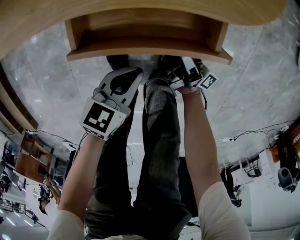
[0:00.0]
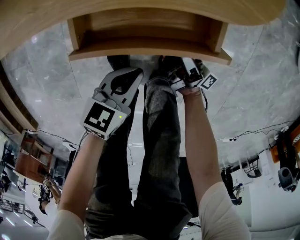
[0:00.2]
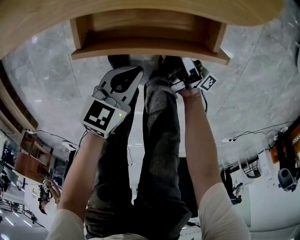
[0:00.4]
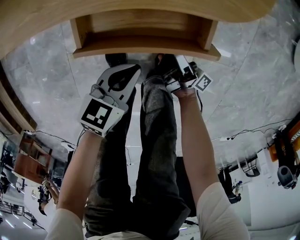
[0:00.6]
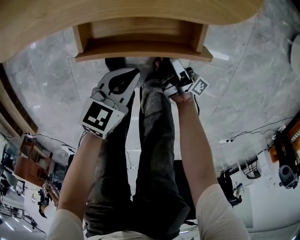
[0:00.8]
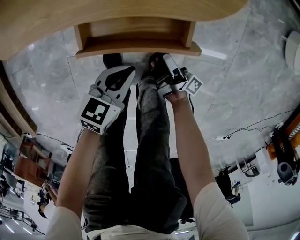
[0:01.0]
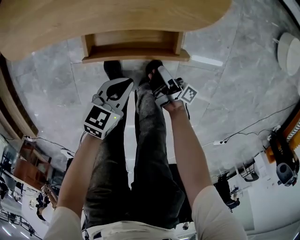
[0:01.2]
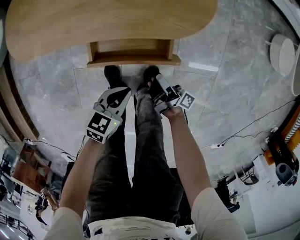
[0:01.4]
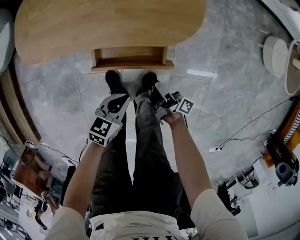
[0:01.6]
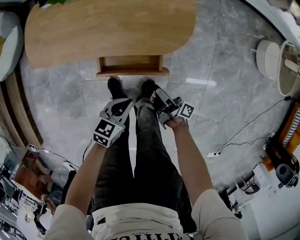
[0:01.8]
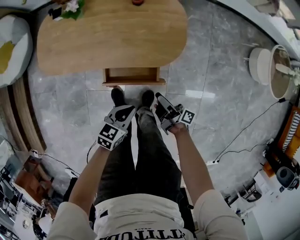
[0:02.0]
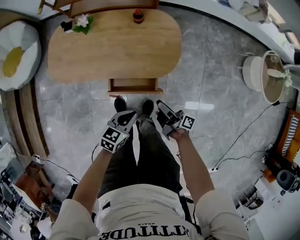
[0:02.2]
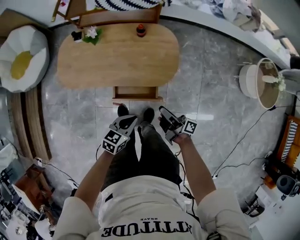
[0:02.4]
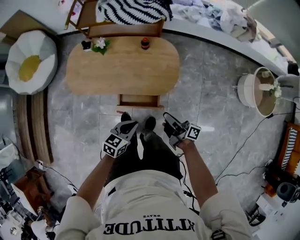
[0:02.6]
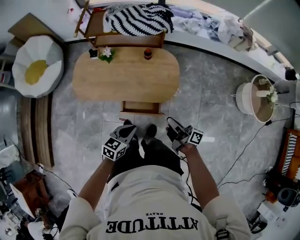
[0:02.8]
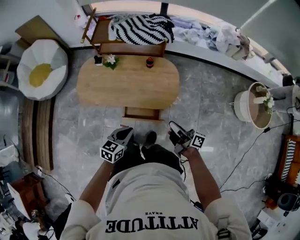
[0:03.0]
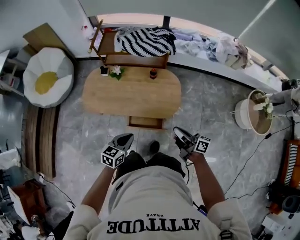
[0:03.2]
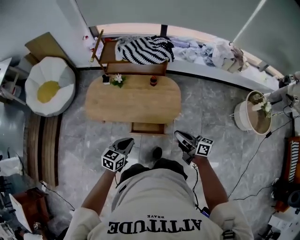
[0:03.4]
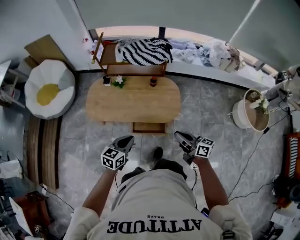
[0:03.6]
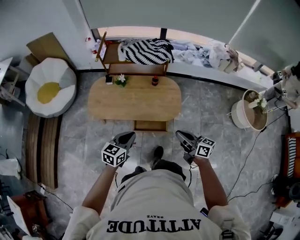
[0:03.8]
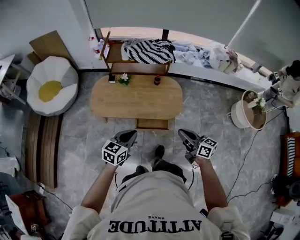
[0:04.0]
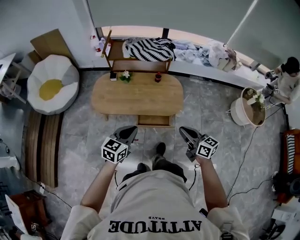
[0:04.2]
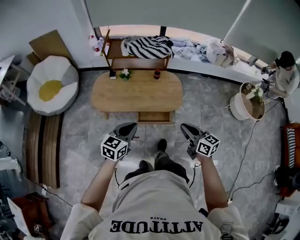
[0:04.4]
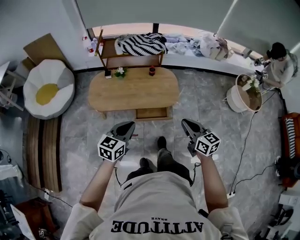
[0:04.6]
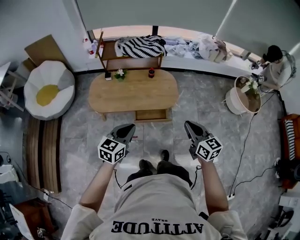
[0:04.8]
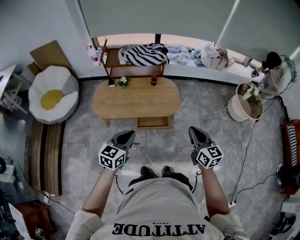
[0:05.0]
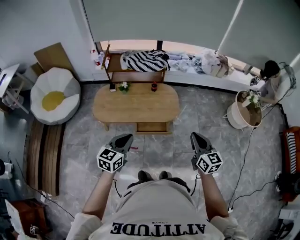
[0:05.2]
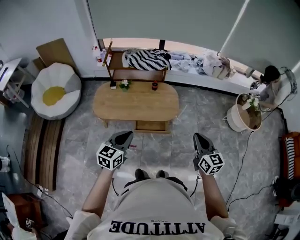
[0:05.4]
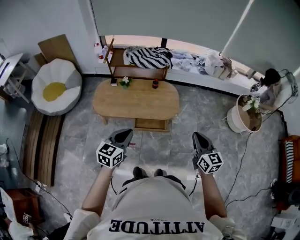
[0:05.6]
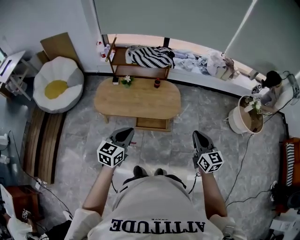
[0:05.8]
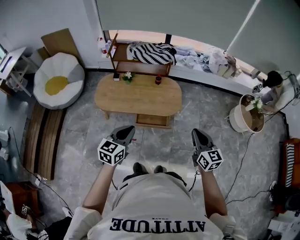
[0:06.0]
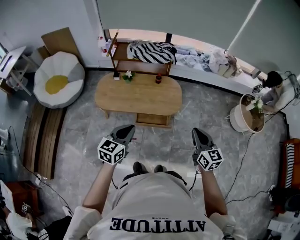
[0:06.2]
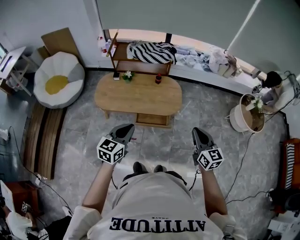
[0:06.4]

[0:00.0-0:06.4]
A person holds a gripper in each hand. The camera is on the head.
0:00.0 to 0:01.6: The grippers both shift upward by approximately 20 cm.
0:01.6 to 0:03.2: The two grippers go approximately 40 cm upward. The right gripper rotates roughly 40 degrees, and closes its fingers.
0:03.2 to 0:04.8: The right gripper is displaced backward and upward by approximately 25 cm, and twists approximately 50 degrees counterclockwise, seen from behind; the left gripper heads upward, backward and to the left, covering about 20 cm.
0:04.8 to 0:06.4: The right gripper travels to the right by roughly 10 cm.

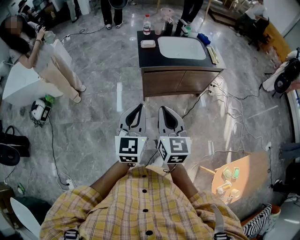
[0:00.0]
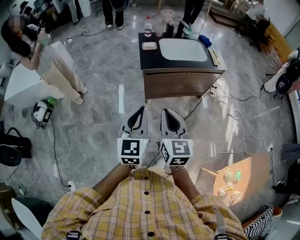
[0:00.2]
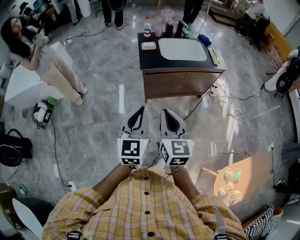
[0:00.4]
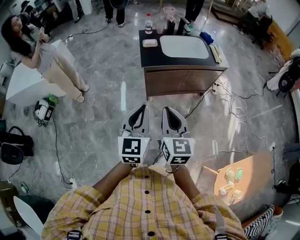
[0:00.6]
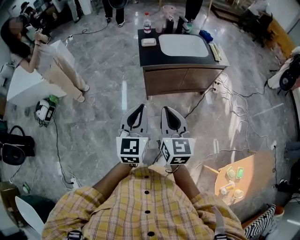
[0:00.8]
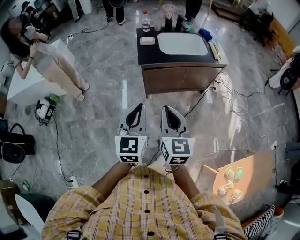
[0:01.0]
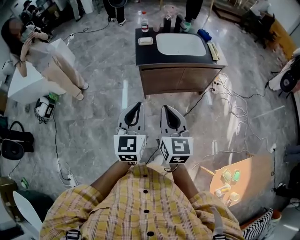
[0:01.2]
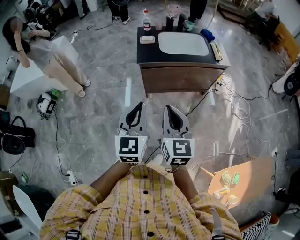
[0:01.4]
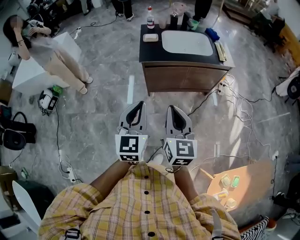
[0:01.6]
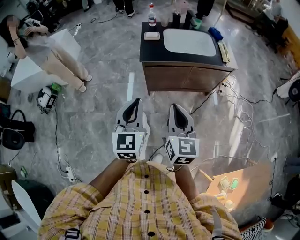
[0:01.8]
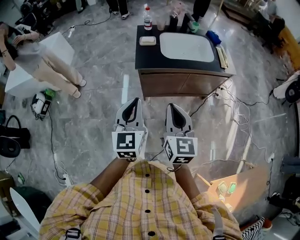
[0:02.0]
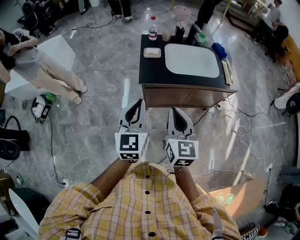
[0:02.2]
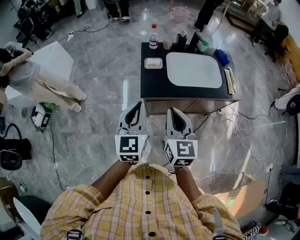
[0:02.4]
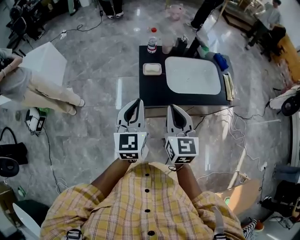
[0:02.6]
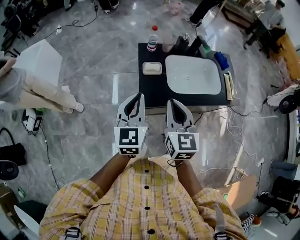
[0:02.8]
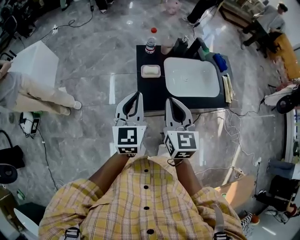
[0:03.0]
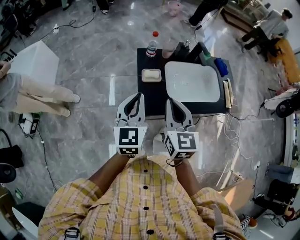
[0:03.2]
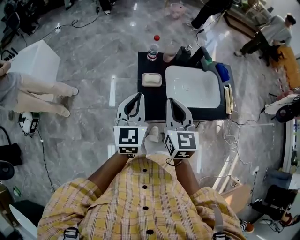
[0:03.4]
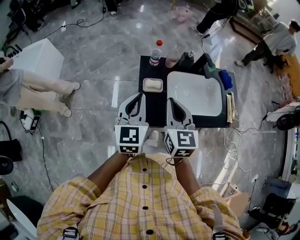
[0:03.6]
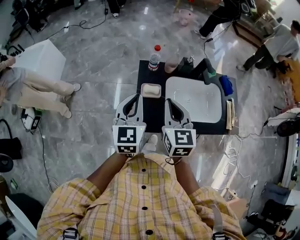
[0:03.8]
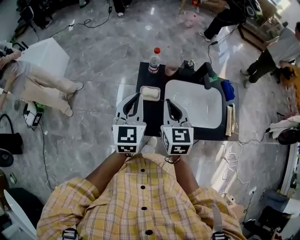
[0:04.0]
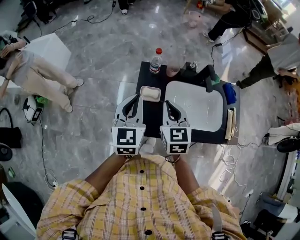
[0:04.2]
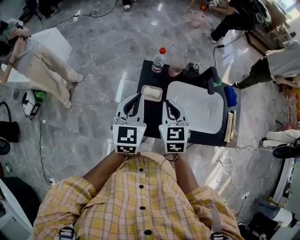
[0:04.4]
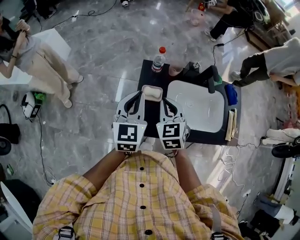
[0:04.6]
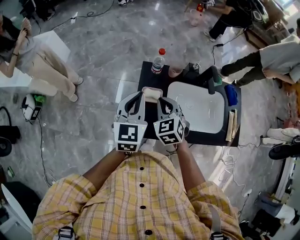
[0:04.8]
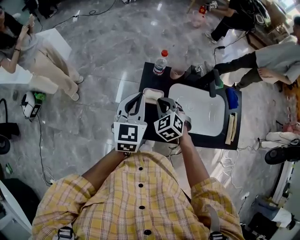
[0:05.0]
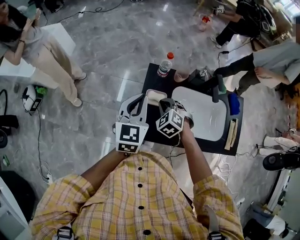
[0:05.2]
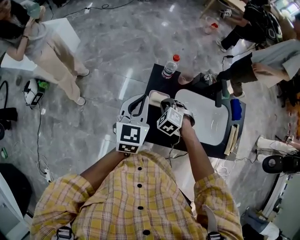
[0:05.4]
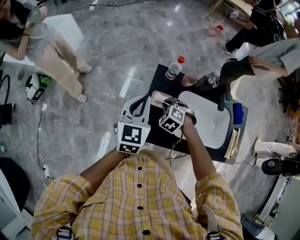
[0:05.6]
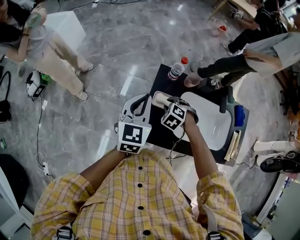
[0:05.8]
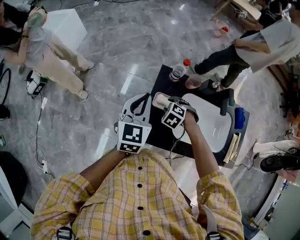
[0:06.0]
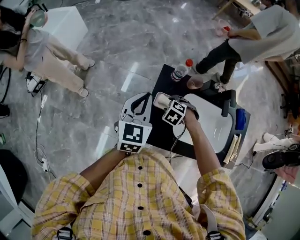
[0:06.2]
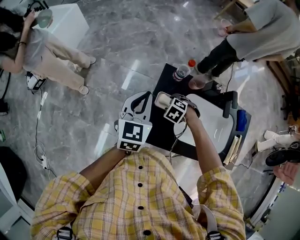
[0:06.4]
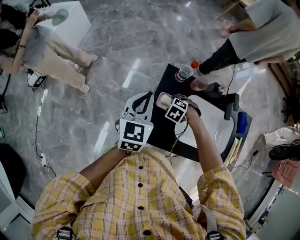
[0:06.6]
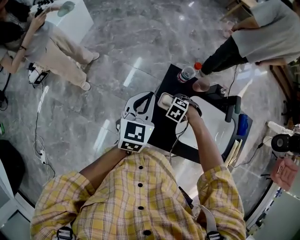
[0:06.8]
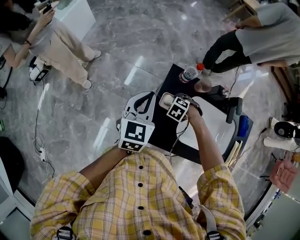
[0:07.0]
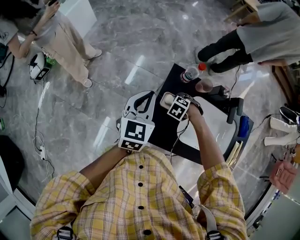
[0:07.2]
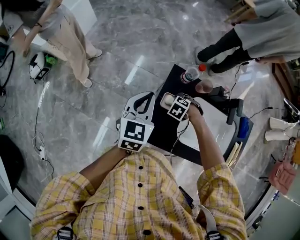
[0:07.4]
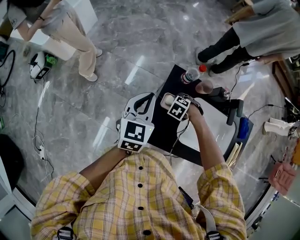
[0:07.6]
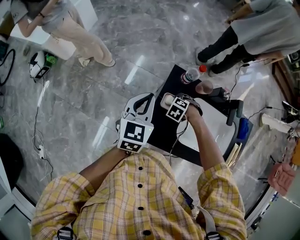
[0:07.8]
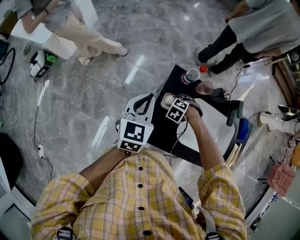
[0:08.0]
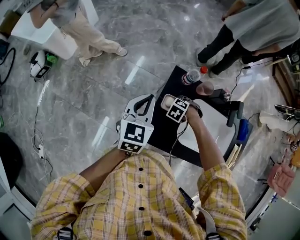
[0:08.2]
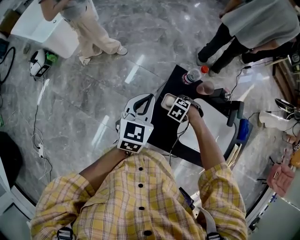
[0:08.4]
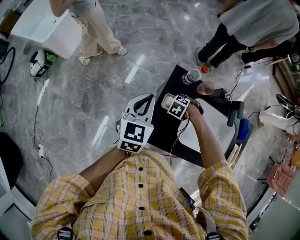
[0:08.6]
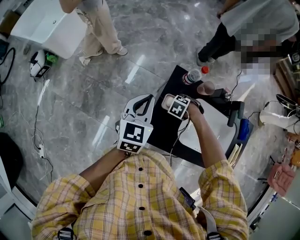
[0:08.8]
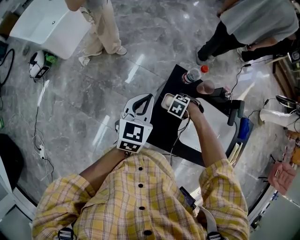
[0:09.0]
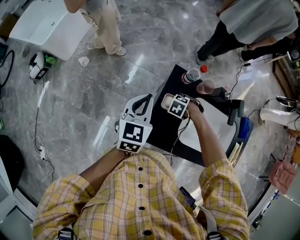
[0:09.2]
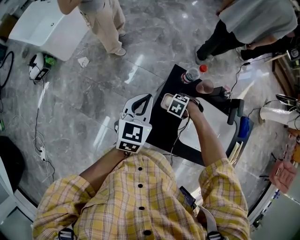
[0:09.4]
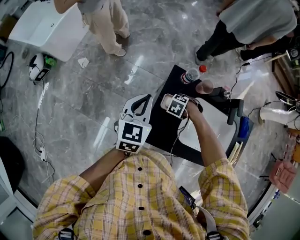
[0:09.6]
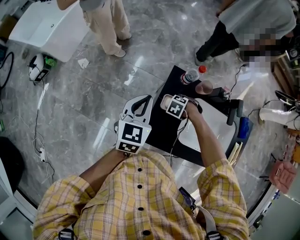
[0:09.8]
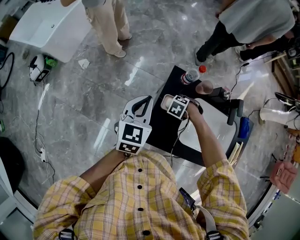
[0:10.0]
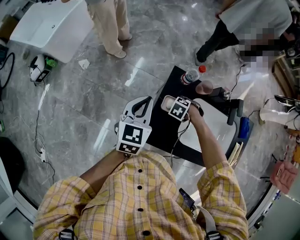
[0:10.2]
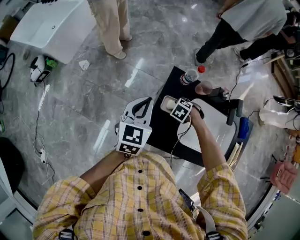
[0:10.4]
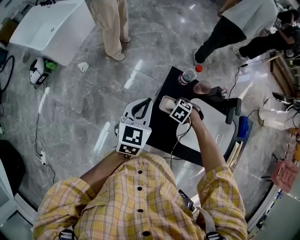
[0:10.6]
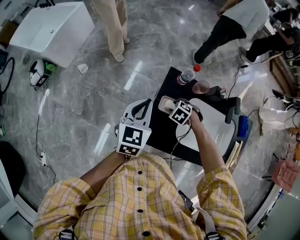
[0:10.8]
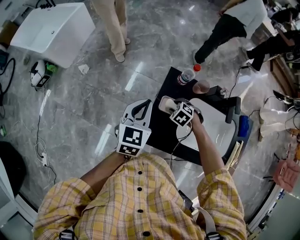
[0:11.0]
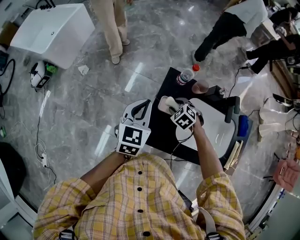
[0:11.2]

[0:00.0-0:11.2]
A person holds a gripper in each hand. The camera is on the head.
0:00.0 to 0:01.6: Both grippers move to the right, roughly 10 cm.
0:01.6 to 0:03.2: The two grippers travel together, forward, approximately 50 cm.
0:03.2 to 0:04.8: The left gripper travels forward by about 15 cm. The right gripper is displaced forward and downward by some 20 cm, and rotates roughly 40 degrees.
0:04.8 to 0:06.4: The right gripper moves downward, roughly 20 cm, tips its fingers downward by some 40 degrees, and opens its fingers; the left gripper ends up about 10 cm from where it was.
0:06.4 to 0:09.6: The grippers stay close to where they were, moving slightly.
0:09.6 to 0:11.2: The right gripper heads upward, covering about 5 cm, and changes its angle by some 30 degrees.

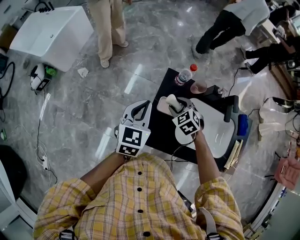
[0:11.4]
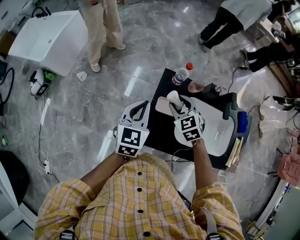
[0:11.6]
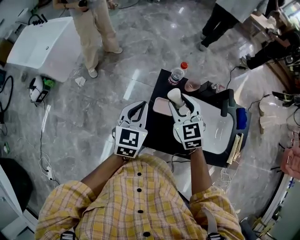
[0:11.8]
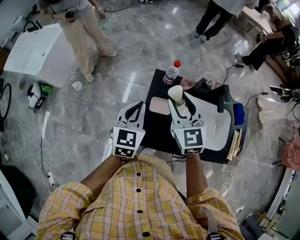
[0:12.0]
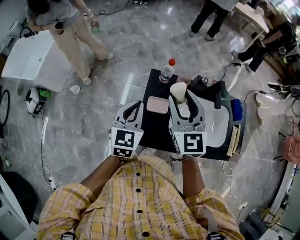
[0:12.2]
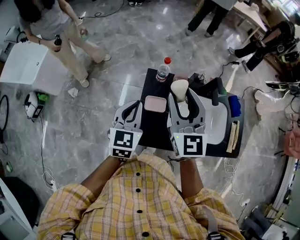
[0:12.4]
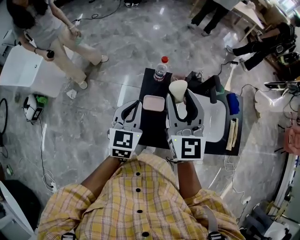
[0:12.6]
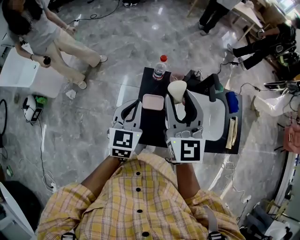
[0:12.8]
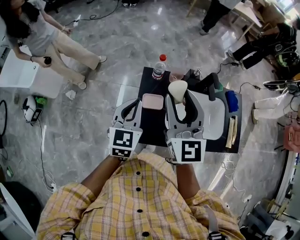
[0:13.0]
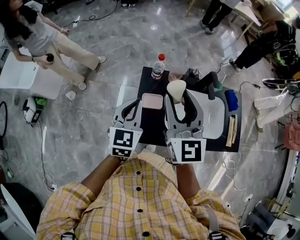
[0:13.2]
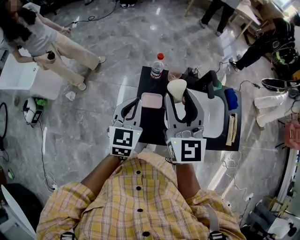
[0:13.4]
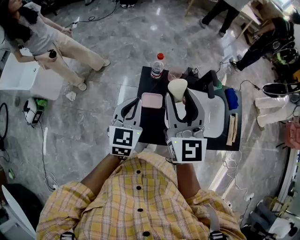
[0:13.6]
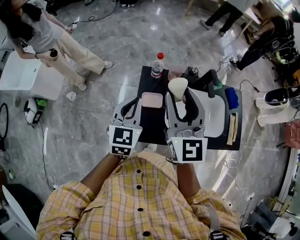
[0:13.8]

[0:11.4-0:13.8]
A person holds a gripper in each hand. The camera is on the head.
0:11.4 to 0:12.6: The left gripper changes place by roughly 5 cm, while the right gripper shifts approximately 30 cm upward, and tips its fingers upward by about 60 degrees.
0:12.6 to 0:13.8: The grippers move only a little.

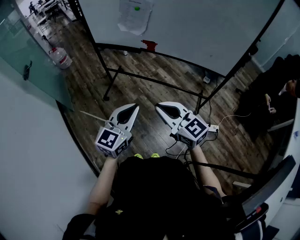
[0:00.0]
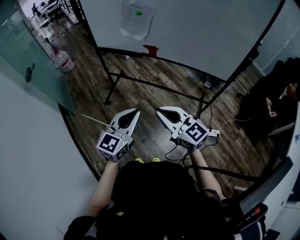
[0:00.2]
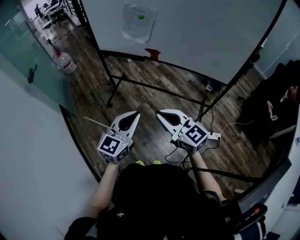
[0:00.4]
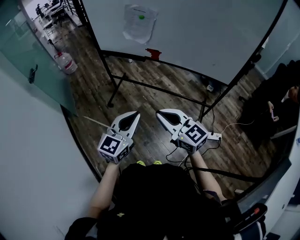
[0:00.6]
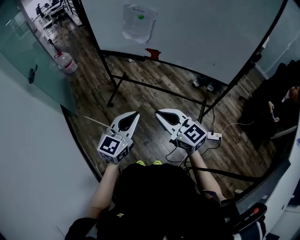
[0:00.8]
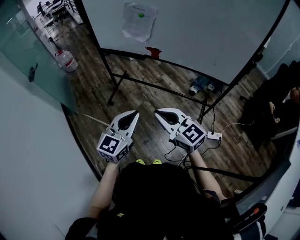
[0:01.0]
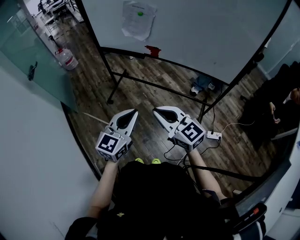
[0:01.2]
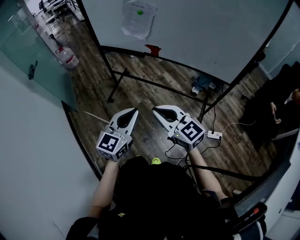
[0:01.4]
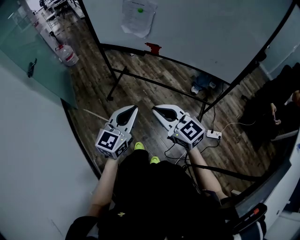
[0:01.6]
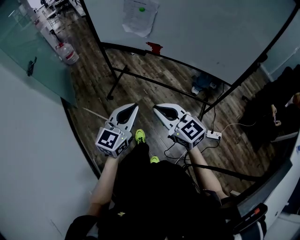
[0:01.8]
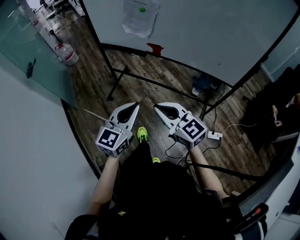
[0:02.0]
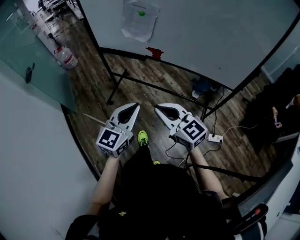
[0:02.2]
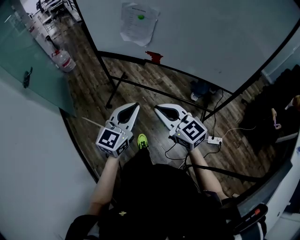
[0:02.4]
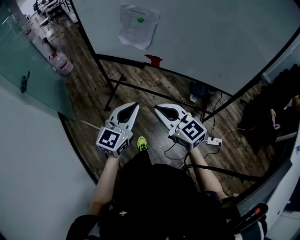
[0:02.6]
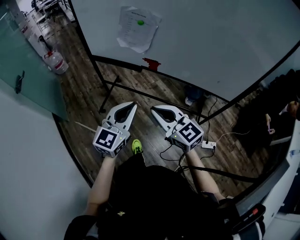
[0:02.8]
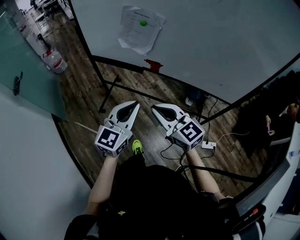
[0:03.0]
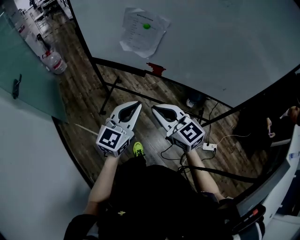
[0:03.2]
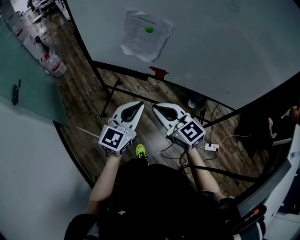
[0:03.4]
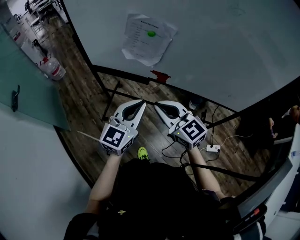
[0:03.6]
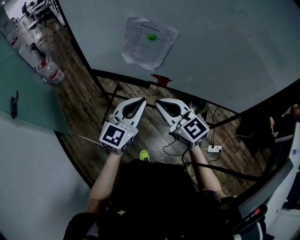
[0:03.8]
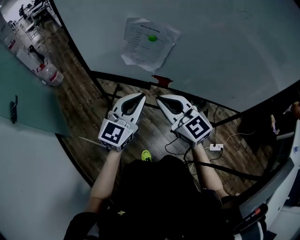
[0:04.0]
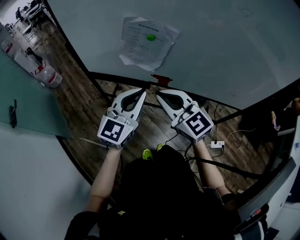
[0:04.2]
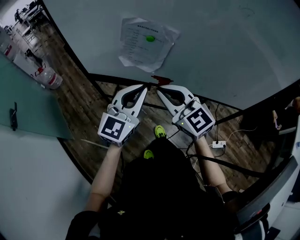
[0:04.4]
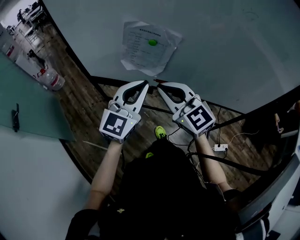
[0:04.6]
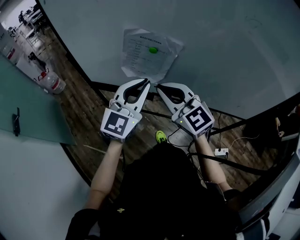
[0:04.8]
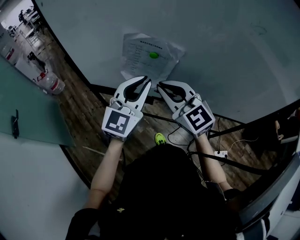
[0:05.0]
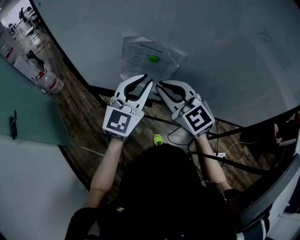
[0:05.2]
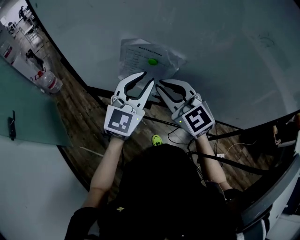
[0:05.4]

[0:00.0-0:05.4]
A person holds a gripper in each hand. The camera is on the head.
0:00.0 to 0:01.4: The grippers move only a little.
0:01.4 to 0:02.8: Both grippers move forward, some 15 cm.
0:02.8 to 0:04.0: The grippers both shift forward by some 20 cm.
0:04.0 to 0:05.4: Both grippers move forward, roughly 15 cm. The left gripper opens its fingers.
